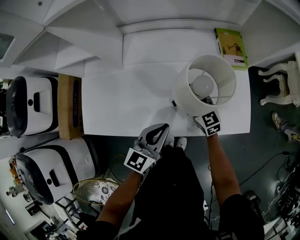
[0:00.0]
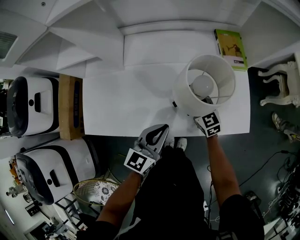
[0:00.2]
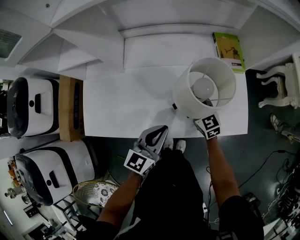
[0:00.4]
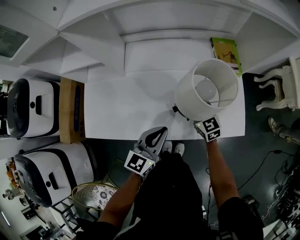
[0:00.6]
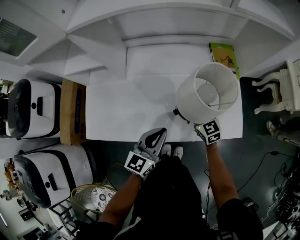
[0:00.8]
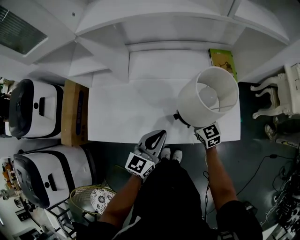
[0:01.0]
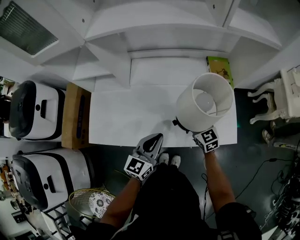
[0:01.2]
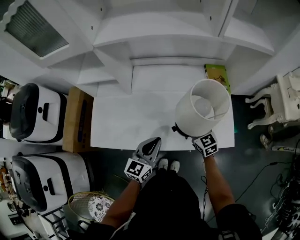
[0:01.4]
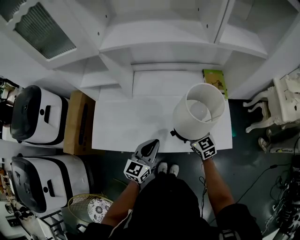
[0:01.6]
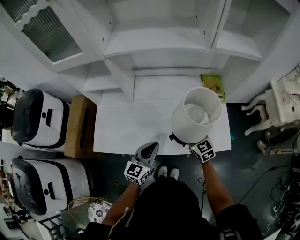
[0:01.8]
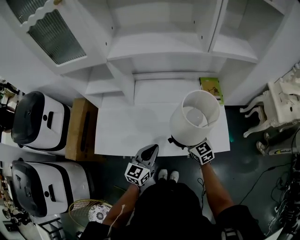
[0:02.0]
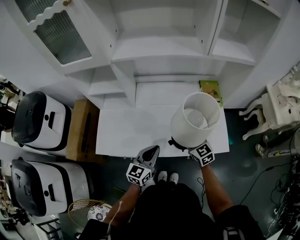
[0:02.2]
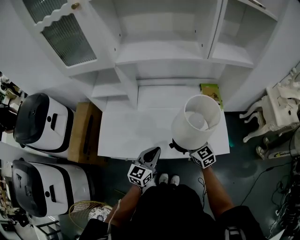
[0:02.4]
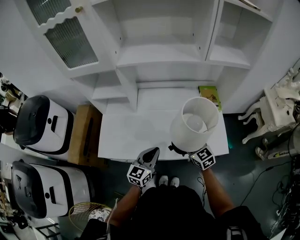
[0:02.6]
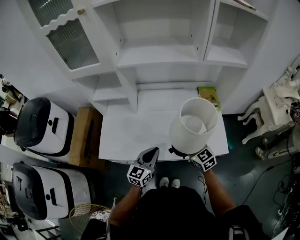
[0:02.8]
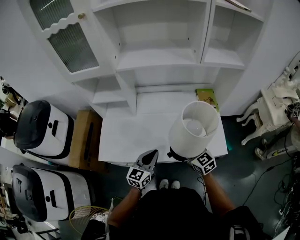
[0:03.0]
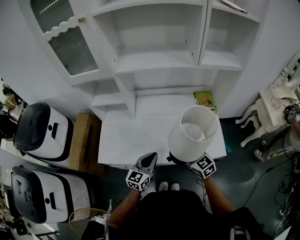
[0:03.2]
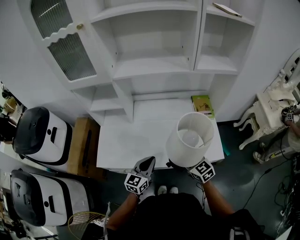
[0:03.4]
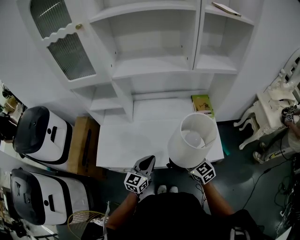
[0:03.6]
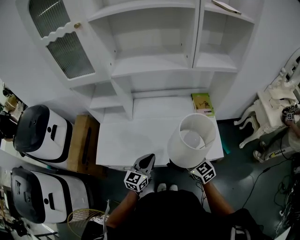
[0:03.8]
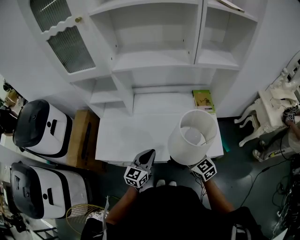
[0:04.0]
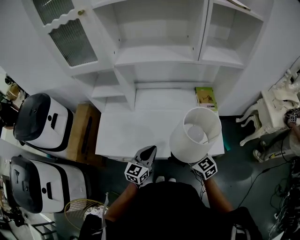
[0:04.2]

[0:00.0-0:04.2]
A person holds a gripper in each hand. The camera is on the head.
0:00.0 to 0:01.4: The right gripper heads upward, covering approximately 10 cm, while the left gripper shifts roughly 5 cm upward.
0:01.4 to 0:02.8: The left gripper ends up about 5 cm from where it was. Meanwhile the right gripper is displaced upward and backward by some 10 cm.
0:02.8 to 0:04.2: The right gripper is displaced backward by roughly 5 cm.

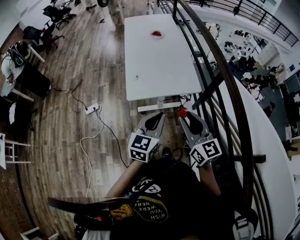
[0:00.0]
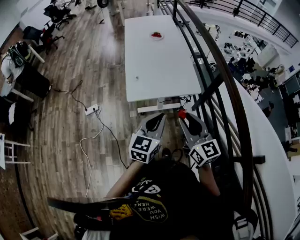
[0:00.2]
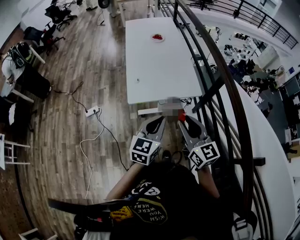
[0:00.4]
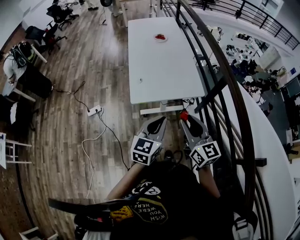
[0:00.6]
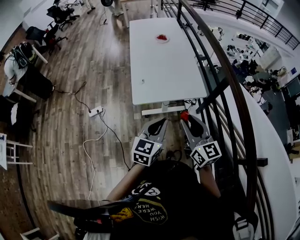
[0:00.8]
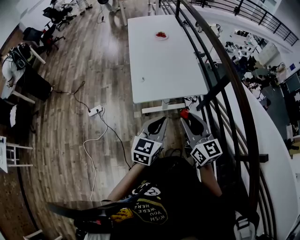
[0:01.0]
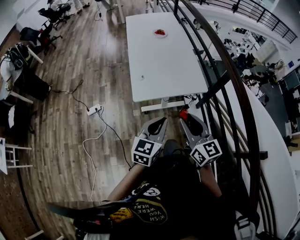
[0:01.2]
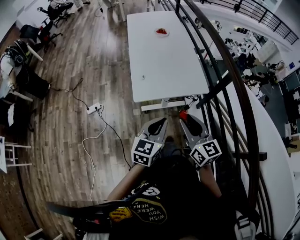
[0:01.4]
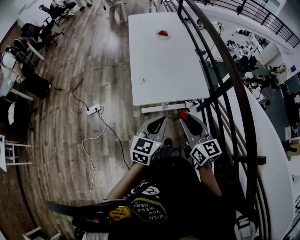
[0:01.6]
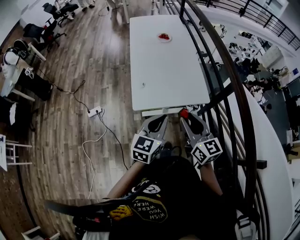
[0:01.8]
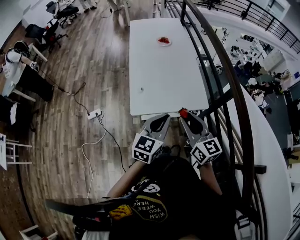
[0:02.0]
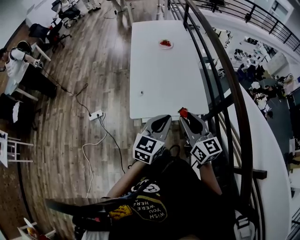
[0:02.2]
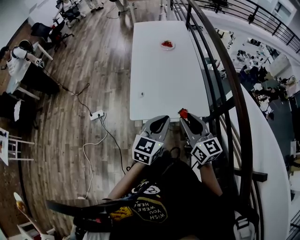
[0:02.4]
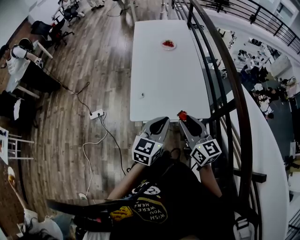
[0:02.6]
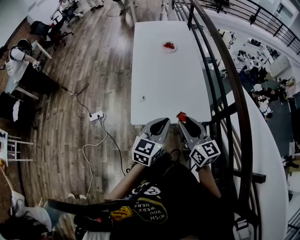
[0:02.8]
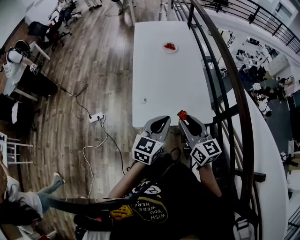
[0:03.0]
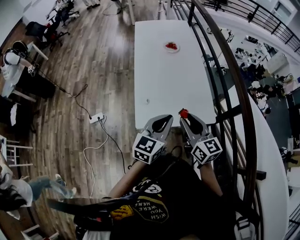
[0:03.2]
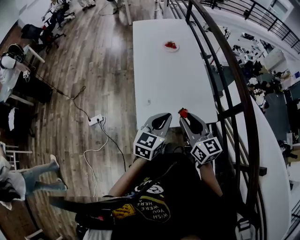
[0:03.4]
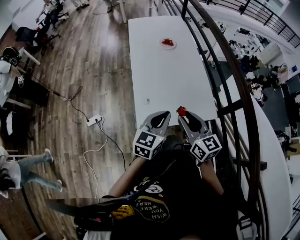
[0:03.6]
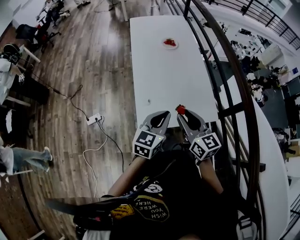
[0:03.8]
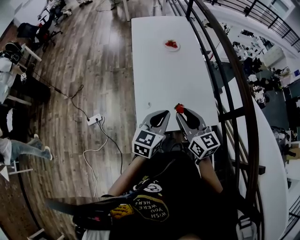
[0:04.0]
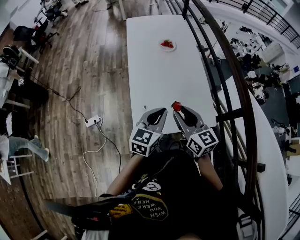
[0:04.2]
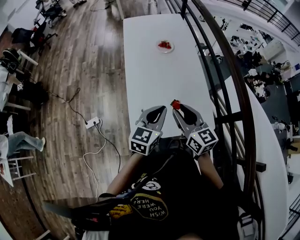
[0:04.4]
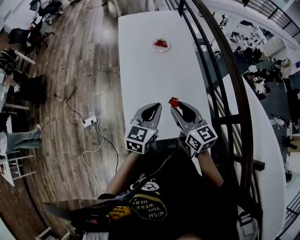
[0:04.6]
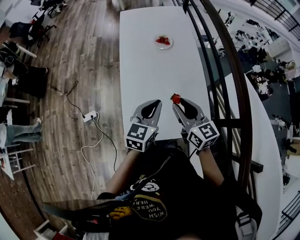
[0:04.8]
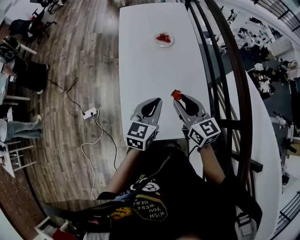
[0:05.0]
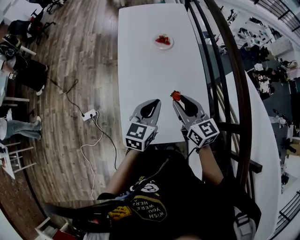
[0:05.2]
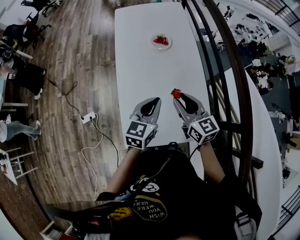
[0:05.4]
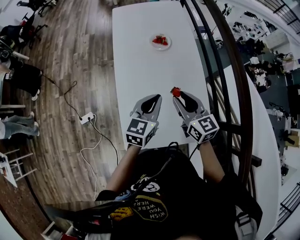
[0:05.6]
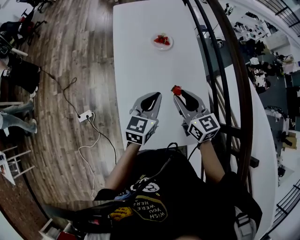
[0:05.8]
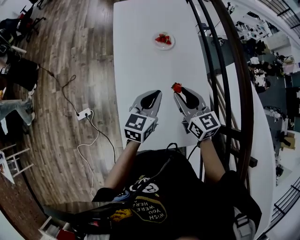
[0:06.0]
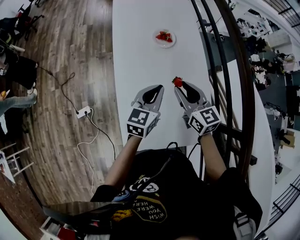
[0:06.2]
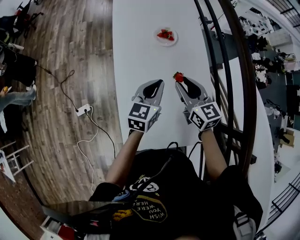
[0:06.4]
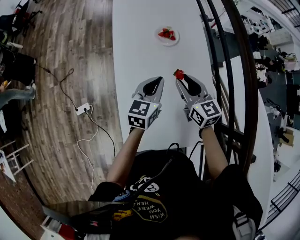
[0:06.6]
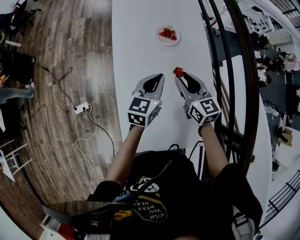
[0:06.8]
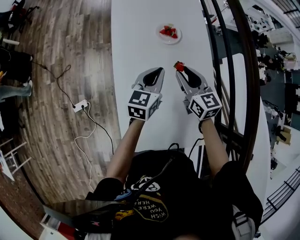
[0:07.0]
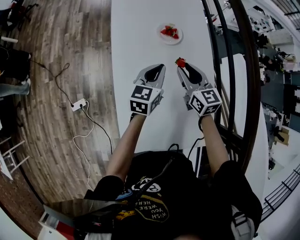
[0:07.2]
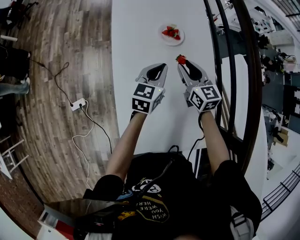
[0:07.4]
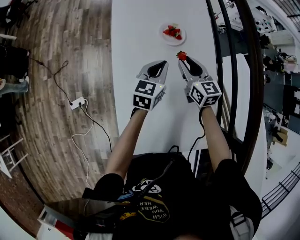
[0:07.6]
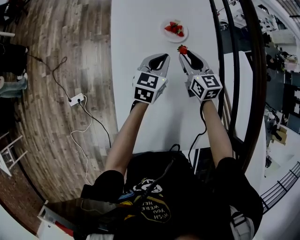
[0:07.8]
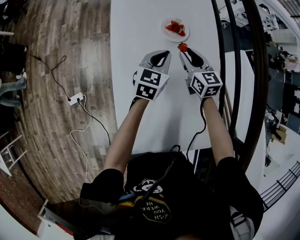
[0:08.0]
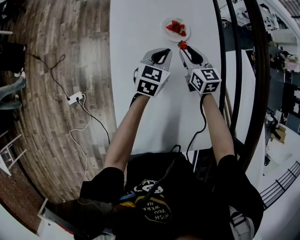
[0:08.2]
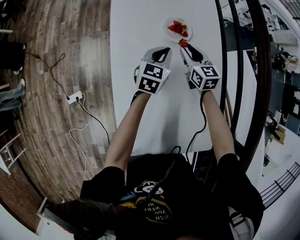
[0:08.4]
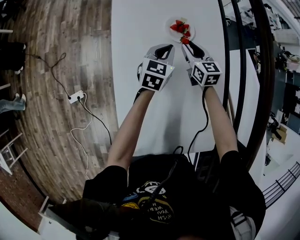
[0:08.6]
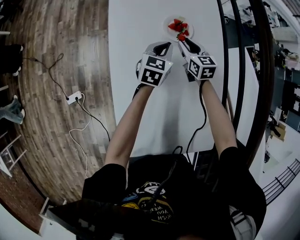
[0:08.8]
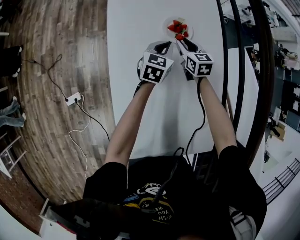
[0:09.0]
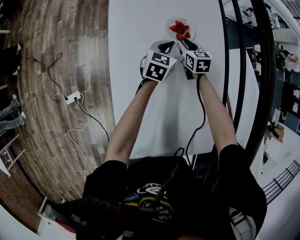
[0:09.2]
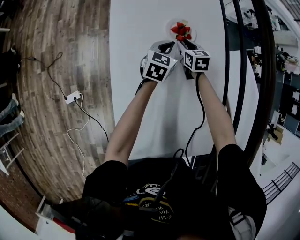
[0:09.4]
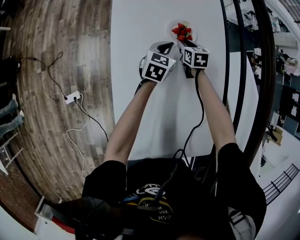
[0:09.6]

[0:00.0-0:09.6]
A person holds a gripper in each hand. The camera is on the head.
0:00.0 to 0:01.6: The left gripper moves roughly 5 cm. Meanwhile the right gripper ends up about 5 cm from where it was.
0:01.6 to 0:03.2: The grippers both shift forward by some 15 cm.
0:03.2 to 0:04.8: The grippers both shift forward by some 15 cm.
0:04.8 to 0:06.4: Both grippers move forward, about 15 cm.
0:06.4 to 0:08.0: The two grippers go about 20 cm forward and downward.
0:08.0 to 0:09.6: The right gripper goes approximately 15 cm downward and forward, and rotates roughly 20 degrees, while the left gripper shifts about 10 cm downward and forward.

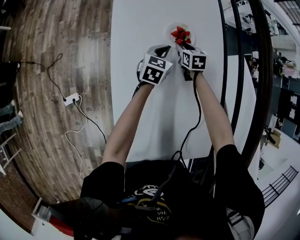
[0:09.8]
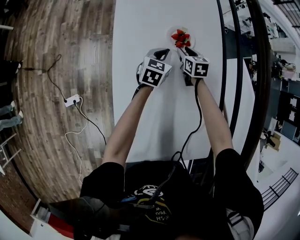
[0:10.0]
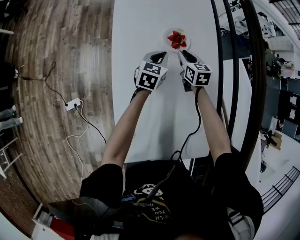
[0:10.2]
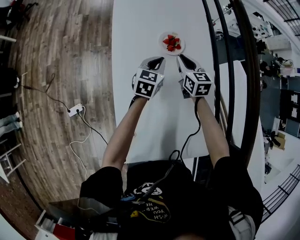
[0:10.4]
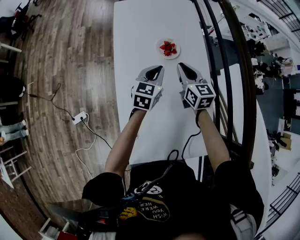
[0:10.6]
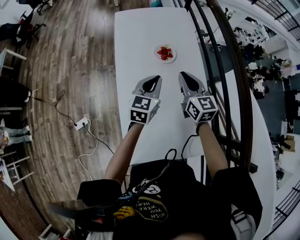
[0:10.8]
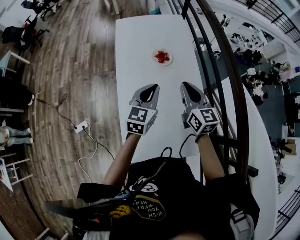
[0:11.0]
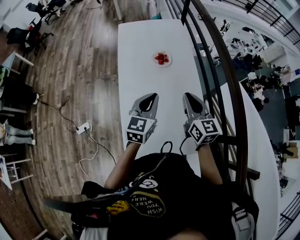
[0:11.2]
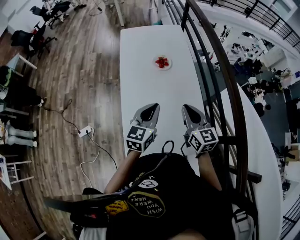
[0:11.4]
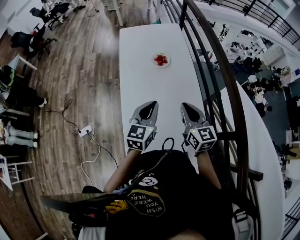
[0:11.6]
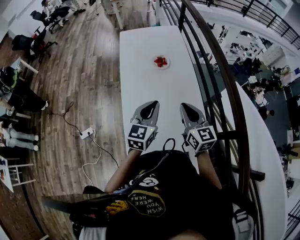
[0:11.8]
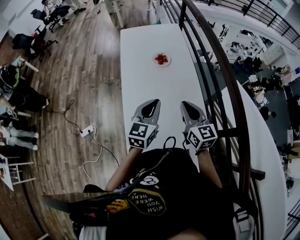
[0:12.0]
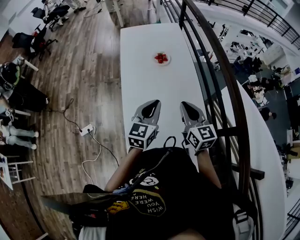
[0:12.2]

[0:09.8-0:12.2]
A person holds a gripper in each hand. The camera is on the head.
0:09.8 to 0:11.0: The grippers both shift upward and backward by approximately 35 cm. The right gripper tips its fingers upward by some 40 degrees, and closes its fingers.
0:11.0 to 0:12.2: The two grippers go roughly 15 cm backward.

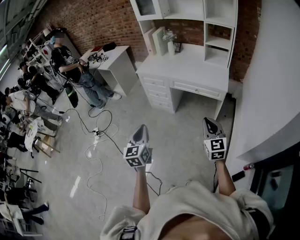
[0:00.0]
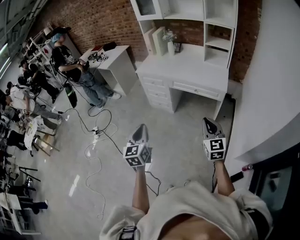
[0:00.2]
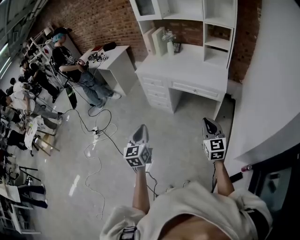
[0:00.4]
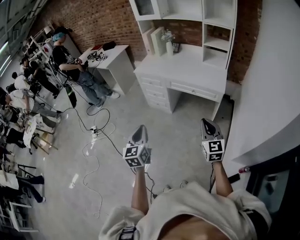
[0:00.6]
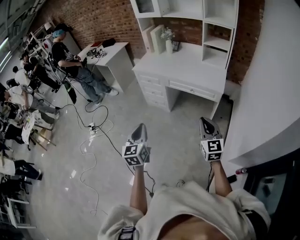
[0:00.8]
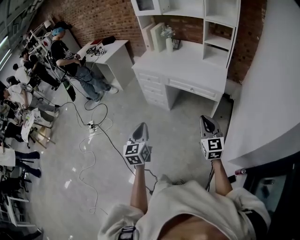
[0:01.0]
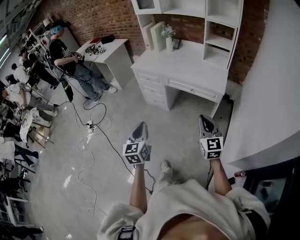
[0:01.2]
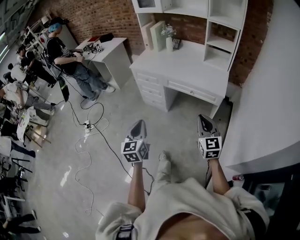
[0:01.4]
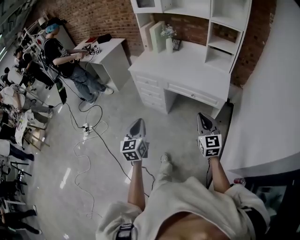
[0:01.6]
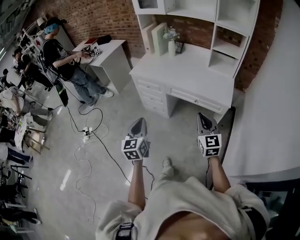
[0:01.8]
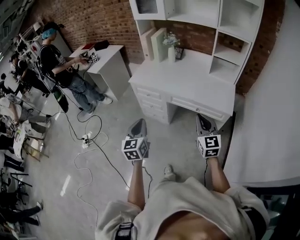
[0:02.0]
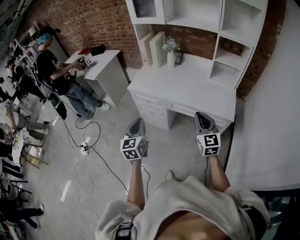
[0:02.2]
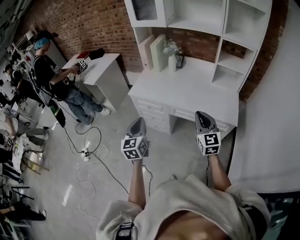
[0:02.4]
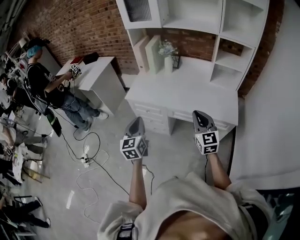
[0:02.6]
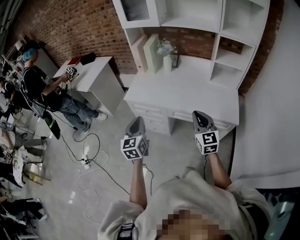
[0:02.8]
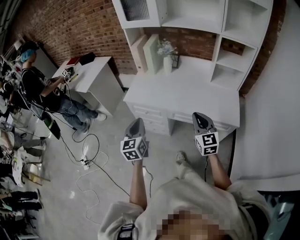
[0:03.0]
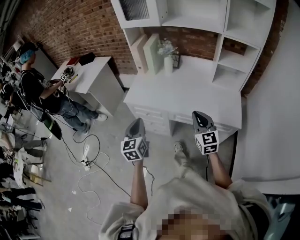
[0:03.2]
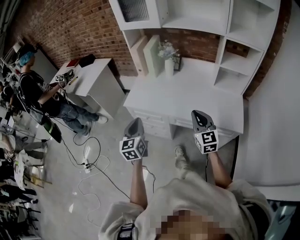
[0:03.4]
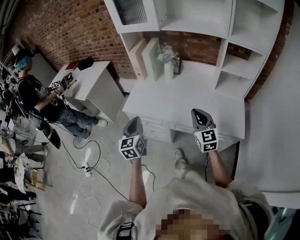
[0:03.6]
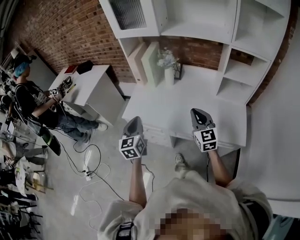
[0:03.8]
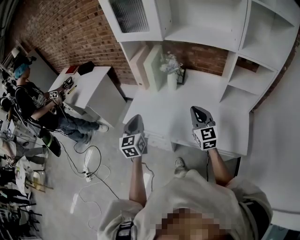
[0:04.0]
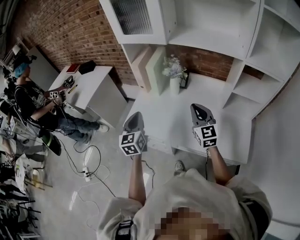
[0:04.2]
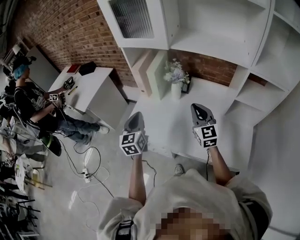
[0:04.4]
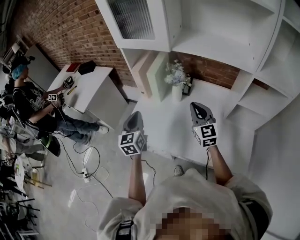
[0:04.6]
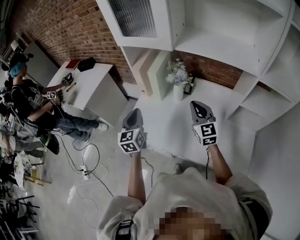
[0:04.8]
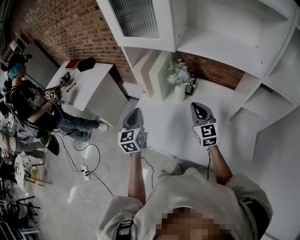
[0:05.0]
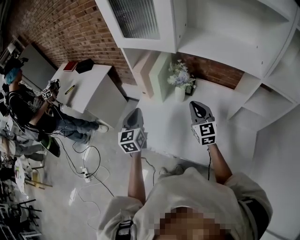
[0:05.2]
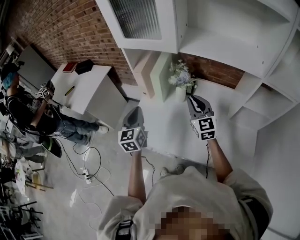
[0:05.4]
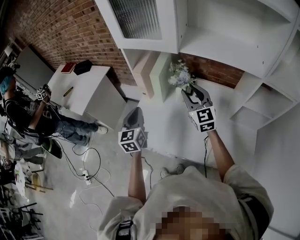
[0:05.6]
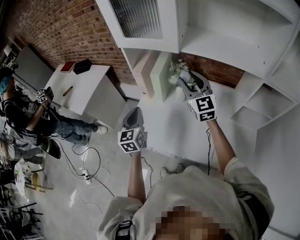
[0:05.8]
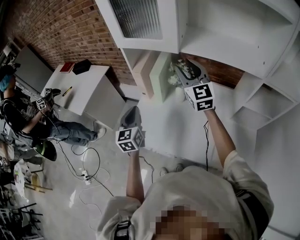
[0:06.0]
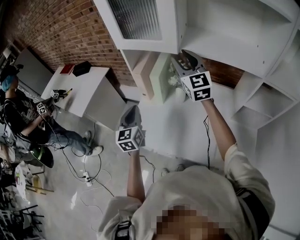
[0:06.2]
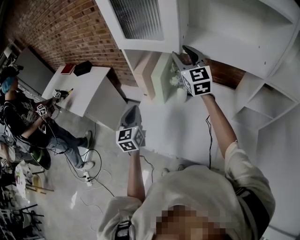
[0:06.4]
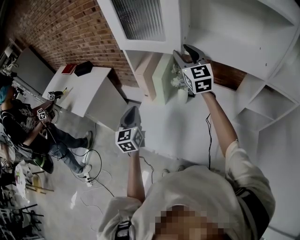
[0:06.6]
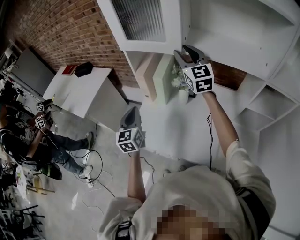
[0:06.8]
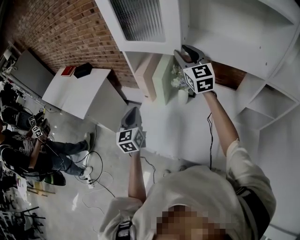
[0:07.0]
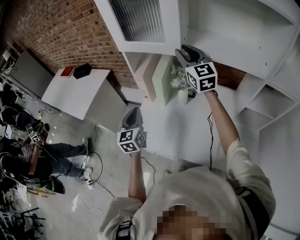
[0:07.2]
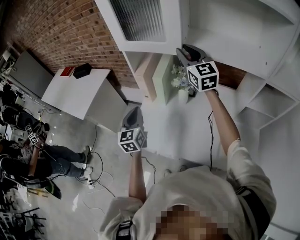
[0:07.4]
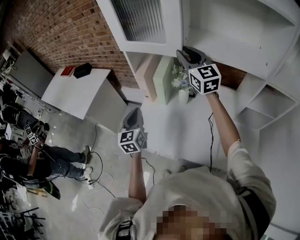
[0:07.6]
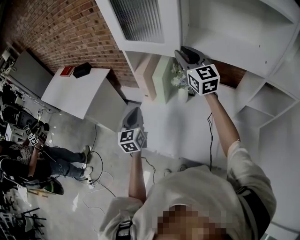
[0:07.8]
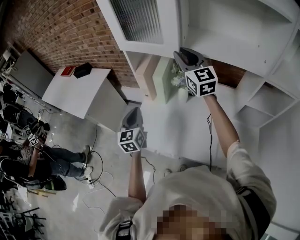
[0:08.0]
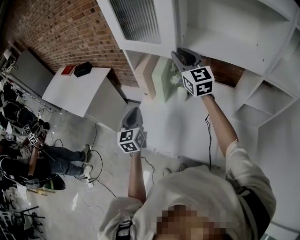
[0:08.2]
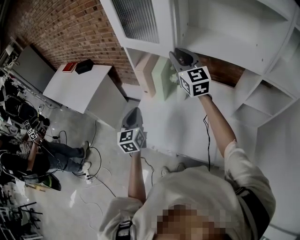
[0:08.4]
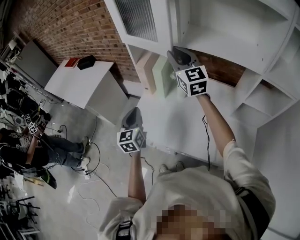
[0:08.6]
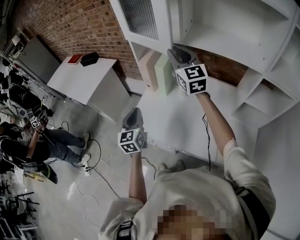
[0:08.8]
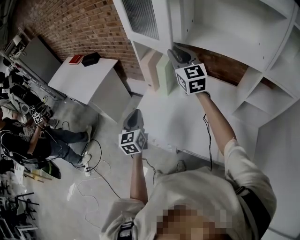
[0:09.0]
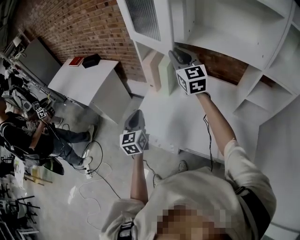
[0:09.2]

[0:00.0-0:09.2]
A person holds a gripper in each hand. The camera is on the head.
0:00.0 to 0:01.6: Both grippers travel together forward, approximately 15 cm.
0:01.6 to 0:03.0: Both grippers move forward, about 35 cm.
0:03.0 to 0:04.6: The grippers both shift forward by about 40 cm.
0:04.6 to 0:06.2: The left gripper shifts roughly 5 cm forward; the right gripper is displaced forward and upward by some 25 cm, and opens.
0:06.2 to 0:07.6: There are only small adjustments of the grippers.
0:07.6 to 0:09.2: The left gripper heads backward, covering about 10 cm; the right gripper travels backward and to the left by about 10 cm.
